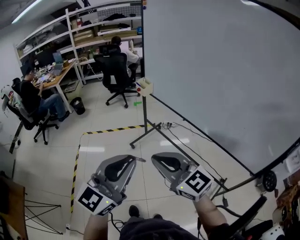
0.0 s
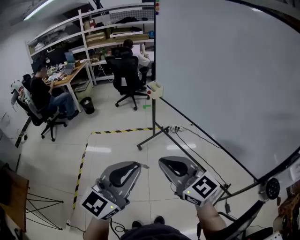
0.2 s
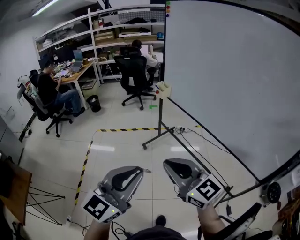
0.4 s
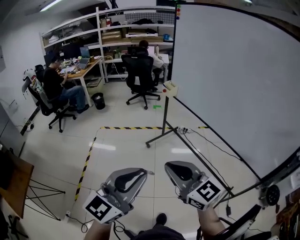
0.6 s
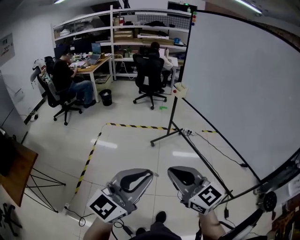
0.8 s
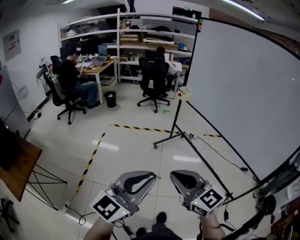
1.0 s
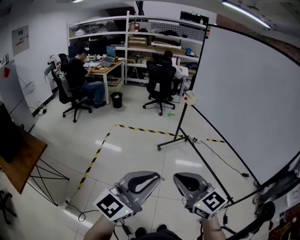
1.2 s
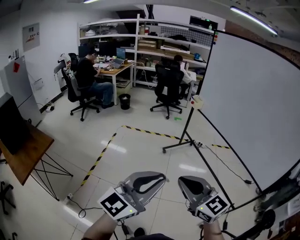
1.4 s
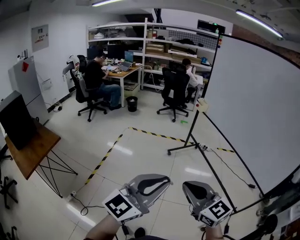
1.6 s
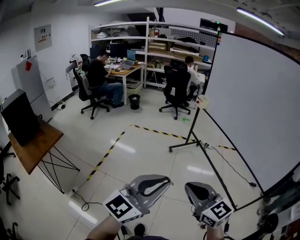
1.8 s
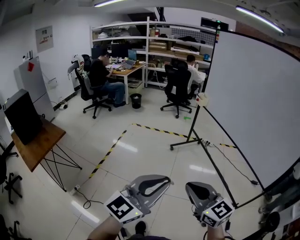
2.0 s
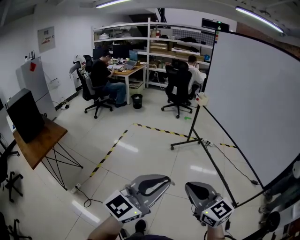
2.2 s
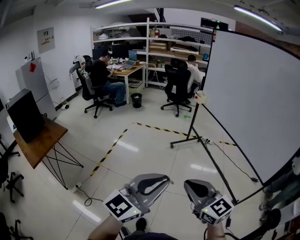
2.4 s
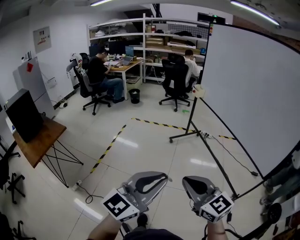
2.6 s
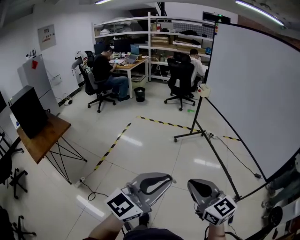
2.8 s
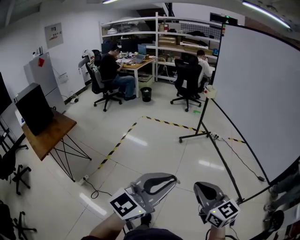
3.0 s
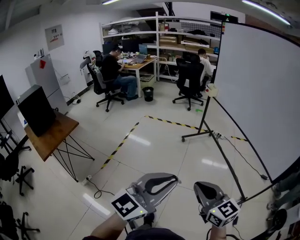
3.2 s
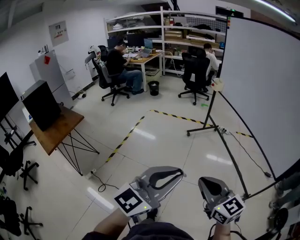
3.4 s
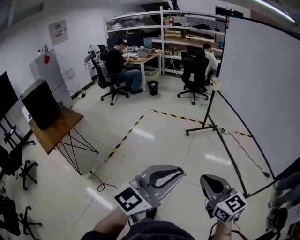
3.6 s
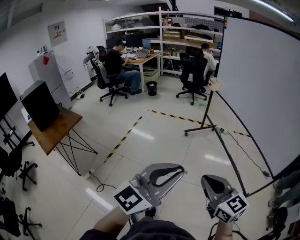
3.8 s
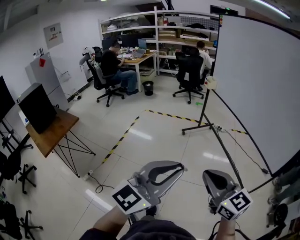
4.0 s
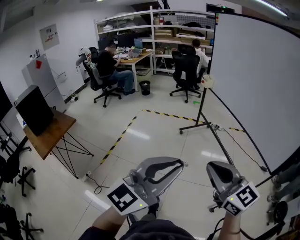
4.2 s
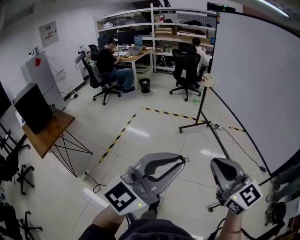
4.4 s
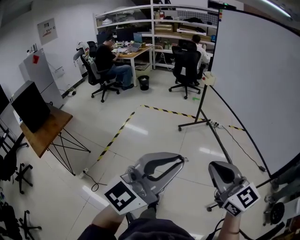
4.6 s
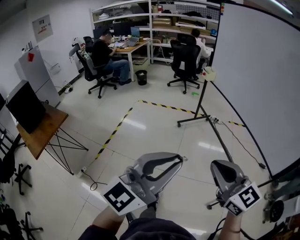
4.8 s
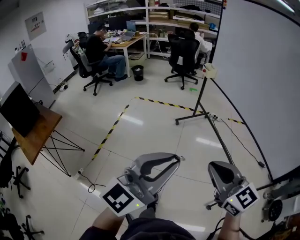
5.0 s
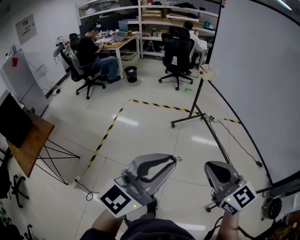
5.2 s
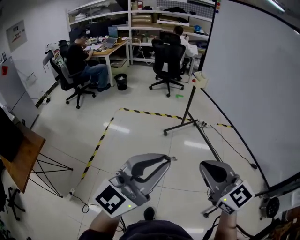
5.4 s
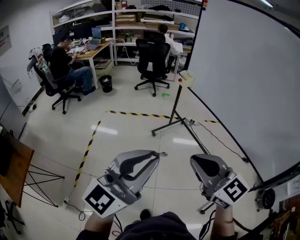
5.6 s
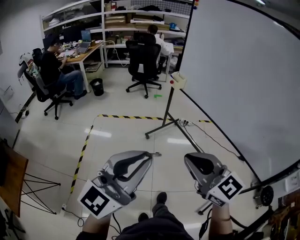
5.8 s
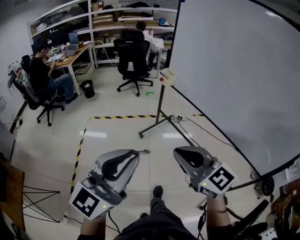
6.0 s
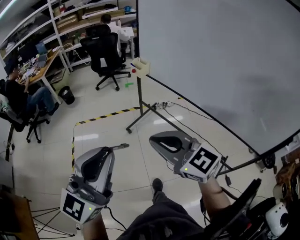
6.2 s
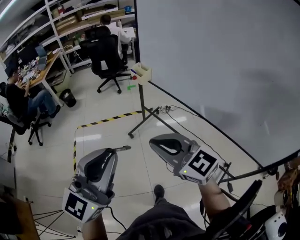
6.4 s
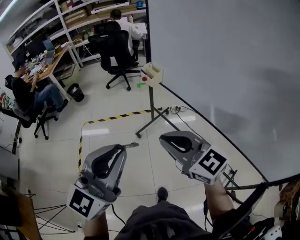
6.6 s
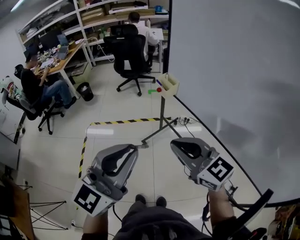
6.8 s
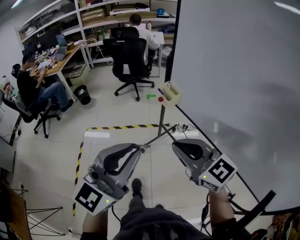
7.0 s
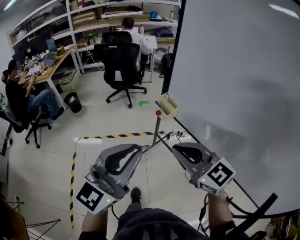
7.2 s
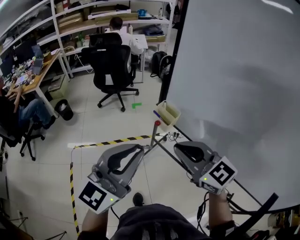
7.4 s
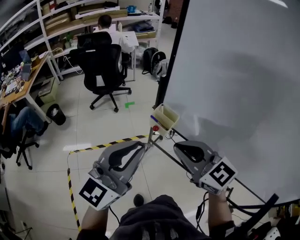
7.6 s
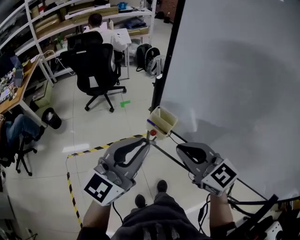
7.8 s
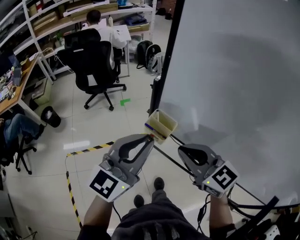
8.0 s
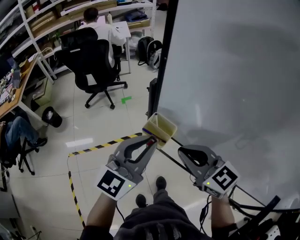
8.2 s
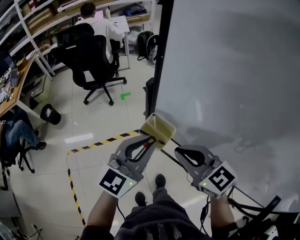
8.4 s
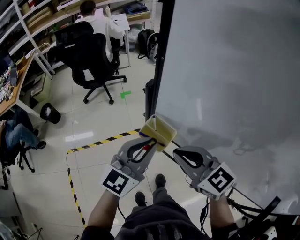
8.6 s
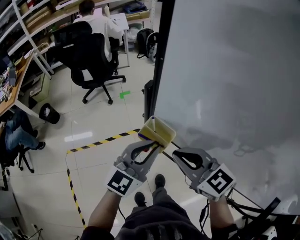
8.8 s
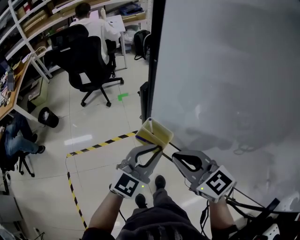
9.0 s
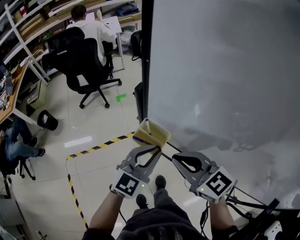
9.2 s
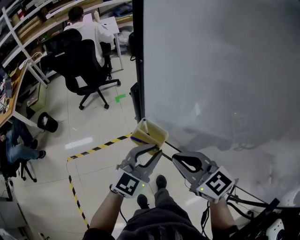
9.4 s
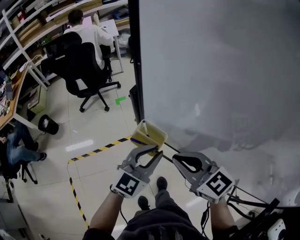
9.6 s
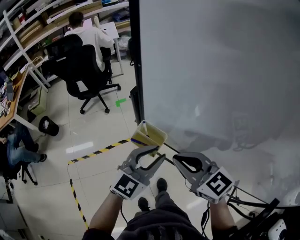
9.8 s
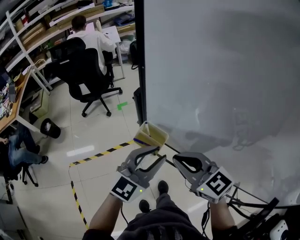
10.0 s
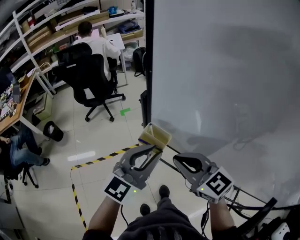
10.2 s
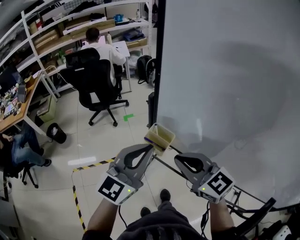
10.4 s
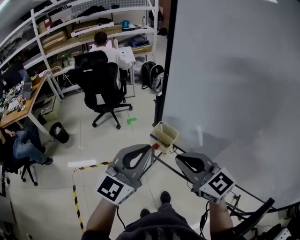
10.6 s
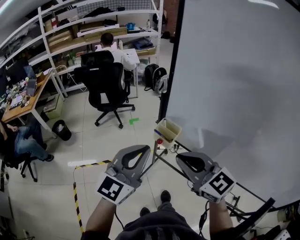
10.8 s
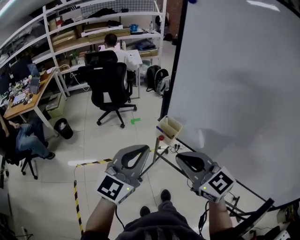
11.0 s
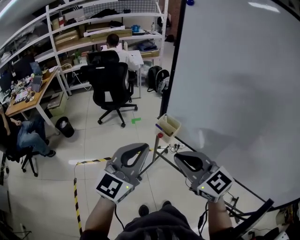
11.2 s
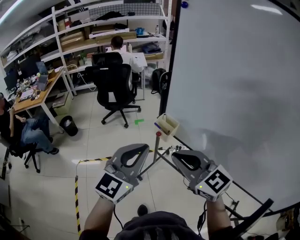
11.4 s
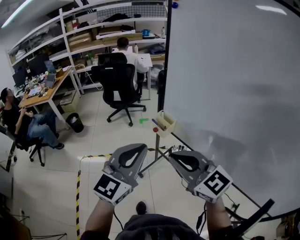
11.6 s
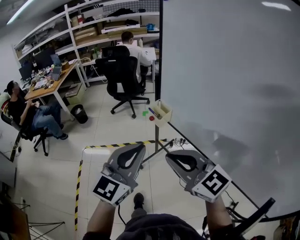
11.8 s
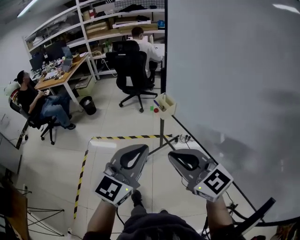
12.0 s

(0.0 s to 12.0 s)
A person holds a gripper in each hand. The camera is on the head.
0.0 s - 1.6 s: Both grippers travel together backward and to the left, roughly 30 cm.
1.6 s - 3.0 s: Both grippers move backward and to the right, about 15 cm.
3.0 s - 4.4 s: The two grippers go some 10 cm upward.
4.4 s - 6.0 s: Both grippers move forward, some 40 cm.
6.0 s - 7.6 s: The two grippers travel together, forward, roughly 50 cm.
7.6 s - 9.0 s: The right gripper heads forward, downward and to the right, covering approximately 15 cm, while the left gripper is displaced forward, downward and to the right by approximately 25 cm, and swivels about 20 degrees.
9.0 s - 10.4 s: The left gripper travels upward and backward by roughly 15 cm. Meanwhile the right gripper is displaced backward and upward by about 10 cm.
10.4 s - 12.0 s: The grippers both shift backward by about 30 cm. The right gripper swivels about 30 degrees, while the left gripper changes its angle by roughly 20 degrees.

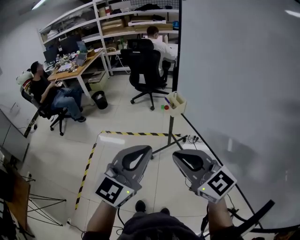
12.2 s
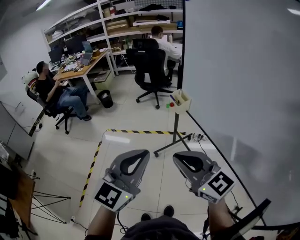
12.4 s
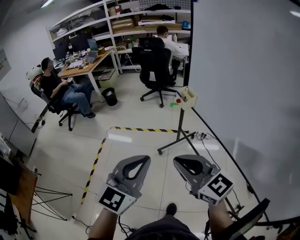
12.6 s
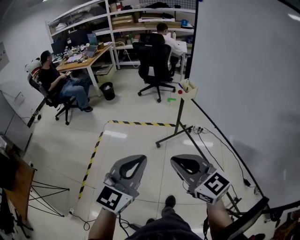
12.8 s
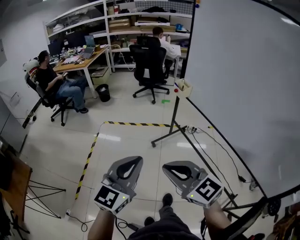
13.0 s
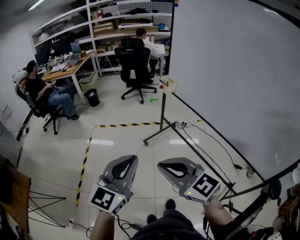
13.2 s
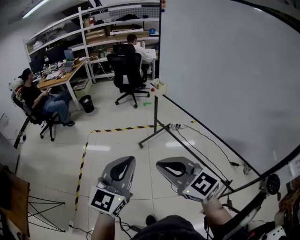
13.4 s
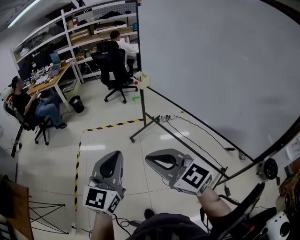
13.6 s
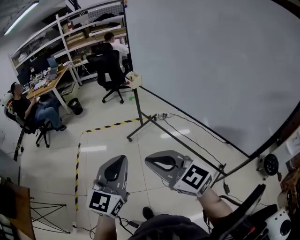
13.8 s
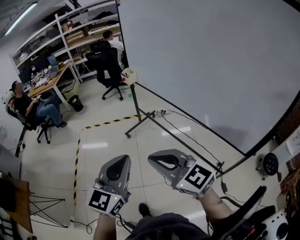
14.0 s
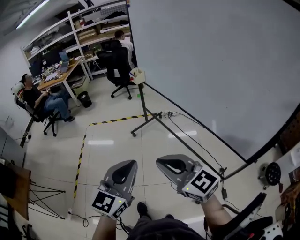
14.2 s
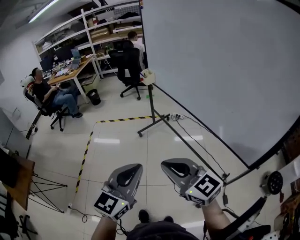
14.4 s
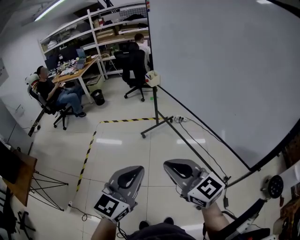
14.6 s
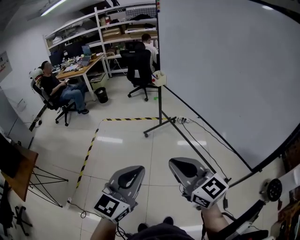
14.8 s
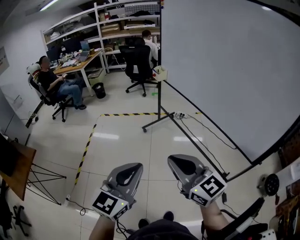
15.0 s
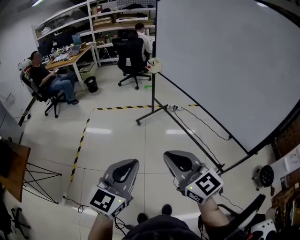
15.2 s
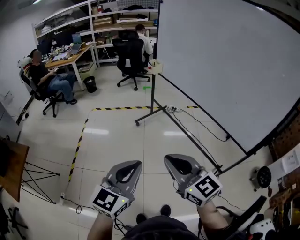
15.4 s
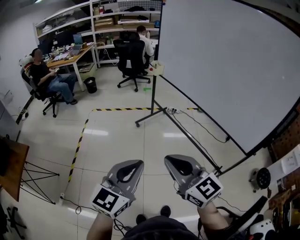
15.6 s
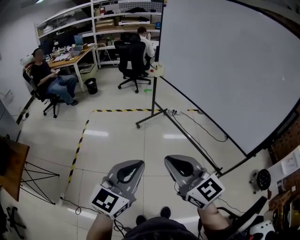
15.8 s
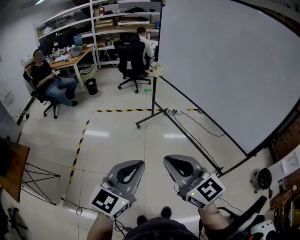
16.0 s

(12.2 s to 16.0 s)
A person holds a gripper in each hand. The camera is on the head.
12.2 s - 13.4 s: Both grippers travel together backward and to the left, approximately 30 cm.
13.4 s - 14.8 s: The grippers both shift backward and to the right by some 25 cm.
14.8 s - 16.0 s: The right gripper shifts about 10 cm to the left and backward. Meanwhile the left gripper heads to the left, covering approximately 10 cm.

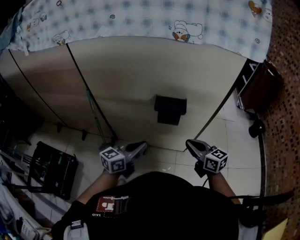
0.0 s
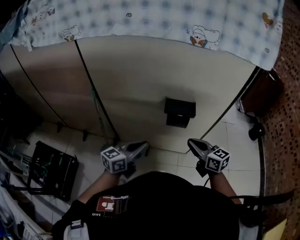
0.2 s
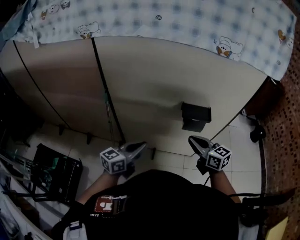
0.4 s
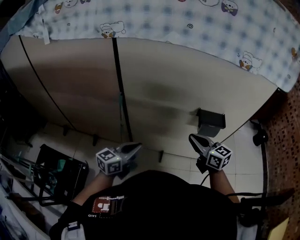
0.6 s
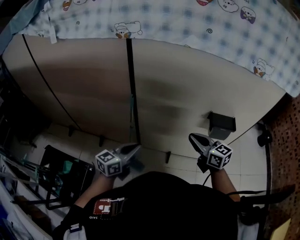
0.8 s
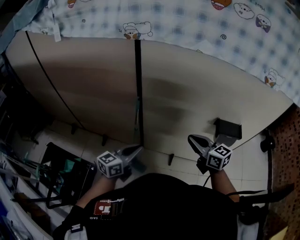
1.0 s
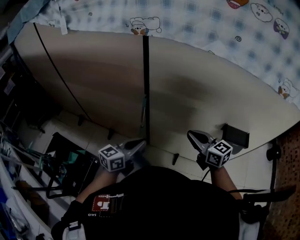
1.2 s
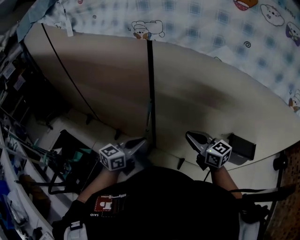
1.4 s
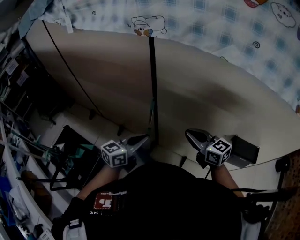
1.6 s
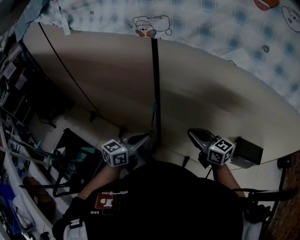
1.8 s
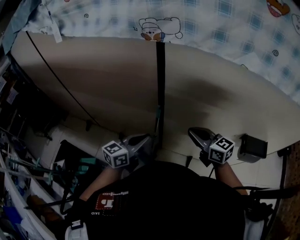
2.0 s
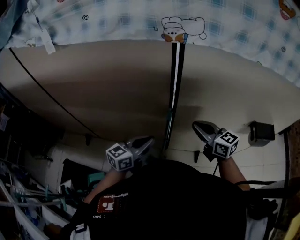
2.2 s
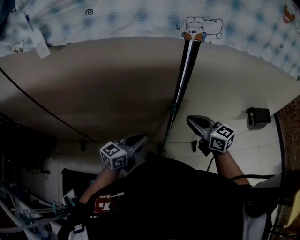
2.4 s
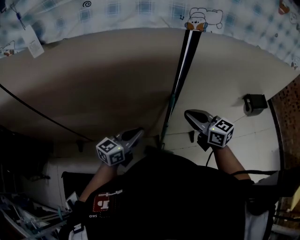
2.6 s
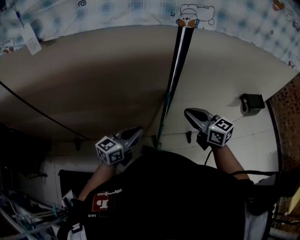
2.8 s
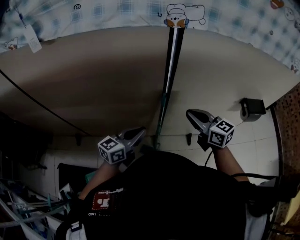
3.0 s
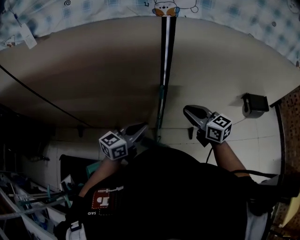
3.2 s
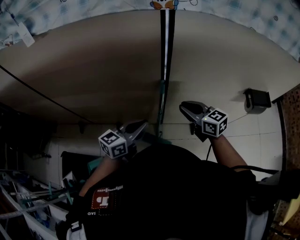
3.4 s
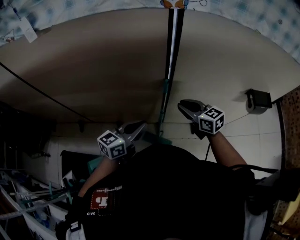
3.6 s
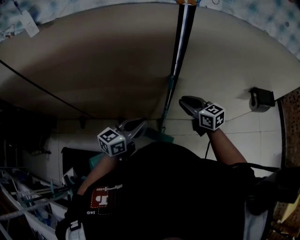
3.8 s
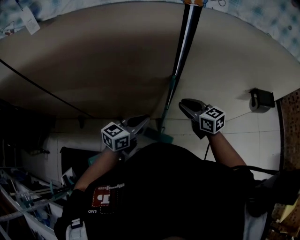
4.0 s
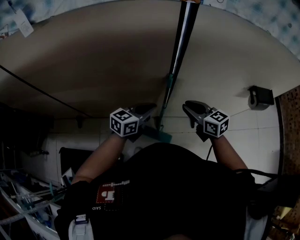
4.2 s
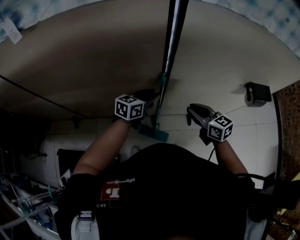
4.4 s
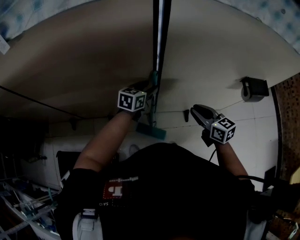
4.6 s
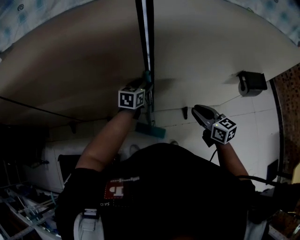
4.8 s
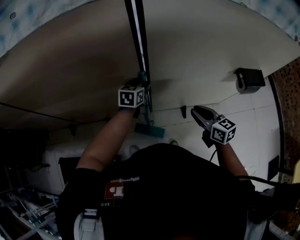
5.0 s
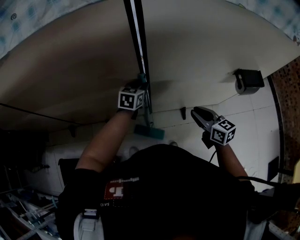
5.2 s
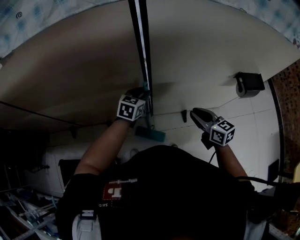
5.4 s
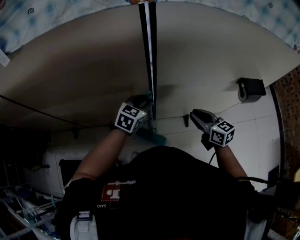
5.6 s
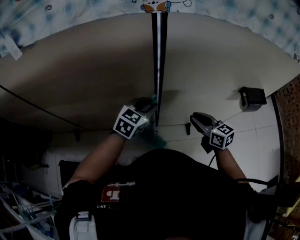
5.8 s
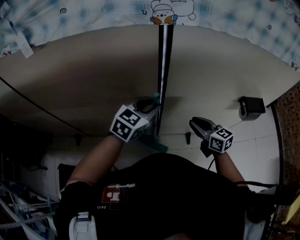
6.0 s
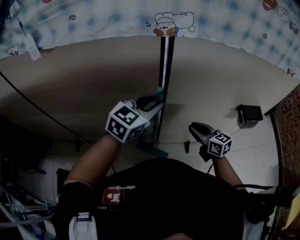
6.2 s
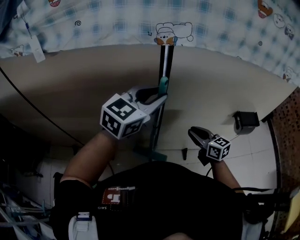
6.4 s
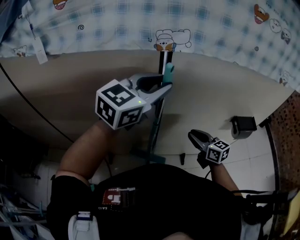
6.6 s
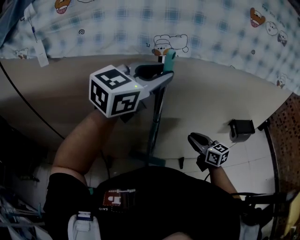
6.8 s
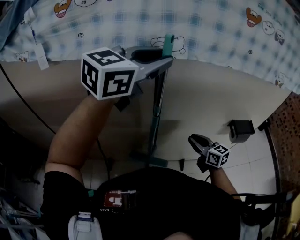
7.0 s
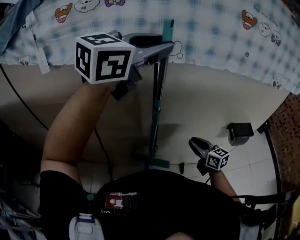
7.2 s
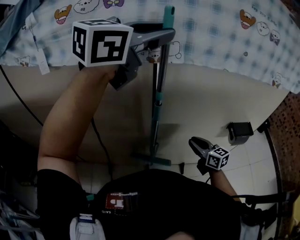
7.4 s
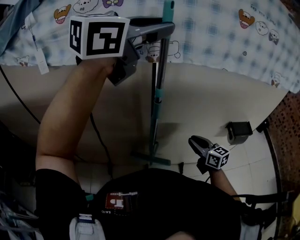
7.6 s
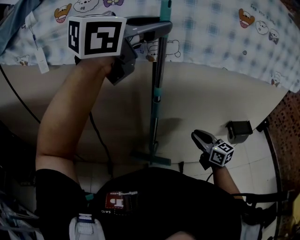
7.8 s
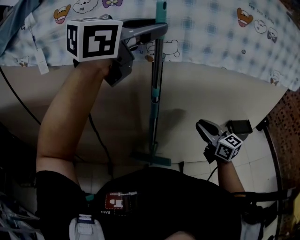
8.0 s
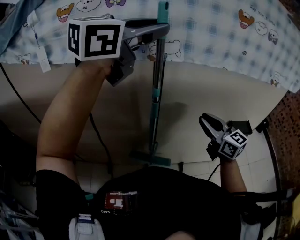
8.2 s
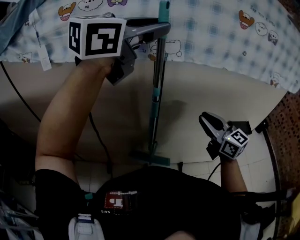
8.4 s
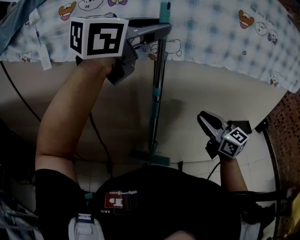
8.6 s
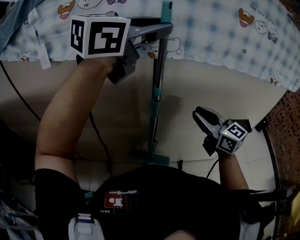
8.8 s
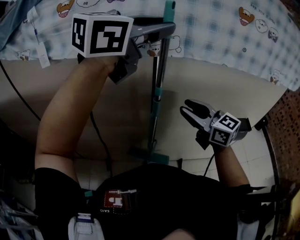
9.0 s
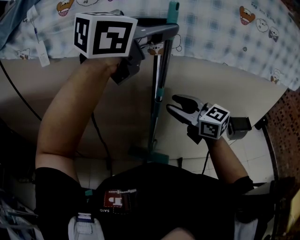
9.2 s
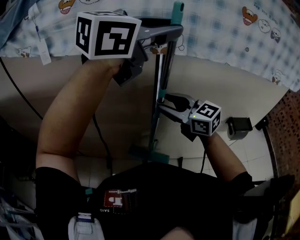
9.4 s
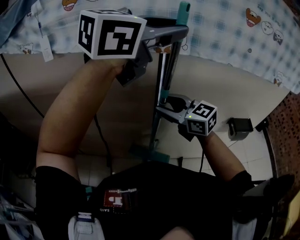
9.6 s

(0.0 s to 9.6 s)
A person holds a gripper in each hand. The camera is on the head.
0.0 s - 1.6 s: The pair of grippers is taken to the left and forward, some 40 cm. The right gripper rotates about 20 degrees.
1.6 s - 3.2 s: The right gripper turns by approximately 20 degrees. The left gripper turns by roughly 20 degrees.
3.2 s - 4.8 s: The left gripper moves forward and downward, about 20 cm, rotates about 30 degrees, and opens up. Meanwhile the right gripper moves to the right and downward, some 10 cm.
4.8 s - 6.4 s: The left gripper travels upward by about 35 cm, turns by some 40 degrees, and closes up, while the right gripper is displaced upward by approximately 5 cm.
6.4 s - 8.0 s: The right gripper is displaced upward by roughly 15 cm. Meanwhile the left gripper shifts roughly 25 cm upward.
8.0 s - 9.6 s: The right gripper goes roughly 20 cm to the left, swivels roughly 30 degrees, and opens.
